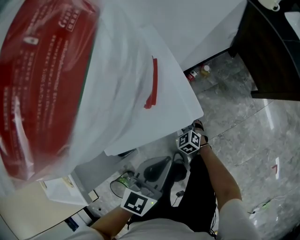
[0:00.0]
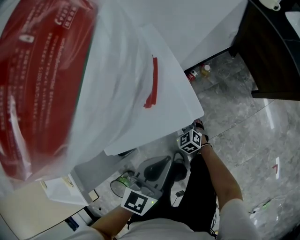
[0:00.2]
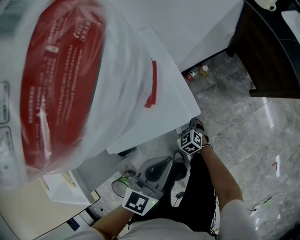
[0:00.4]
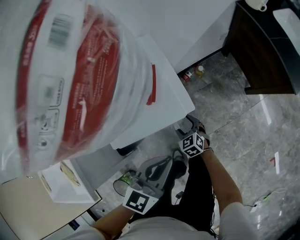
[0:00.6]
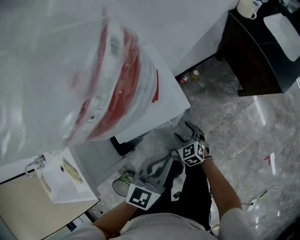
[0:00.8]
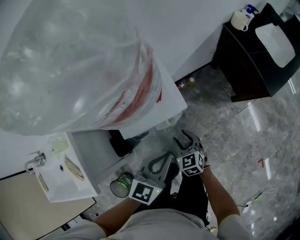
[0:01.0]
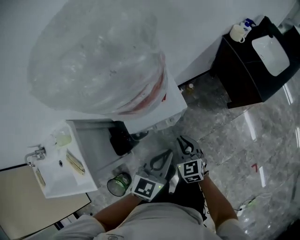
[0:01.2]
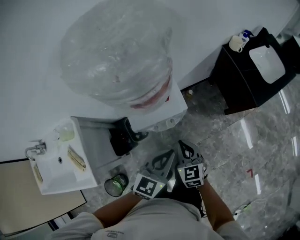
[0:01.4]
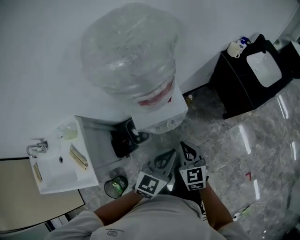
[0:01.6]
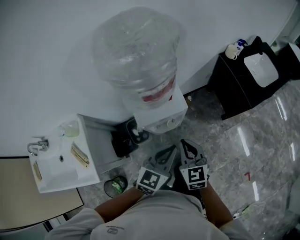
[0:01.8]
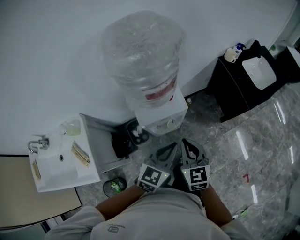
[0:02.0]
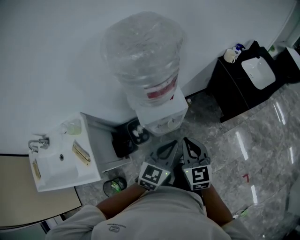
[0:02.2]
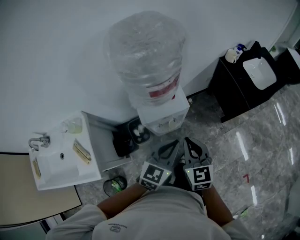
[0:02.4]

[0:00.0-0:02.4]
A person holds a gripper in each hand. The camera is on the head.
0:00.0 to 0:01.2: The left gripper travels upward by some 15 cm. The right gripper goes roughly 35 cm upward, rotates approximately 20 degrees, and closes.
0:01.2 to 0:02.4: The left gripper travels upward by about 10 cm; the right gripper is displaced upward by approximately 20 cm.

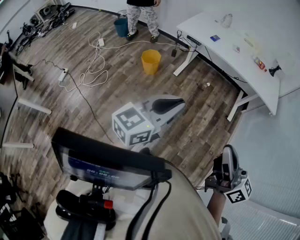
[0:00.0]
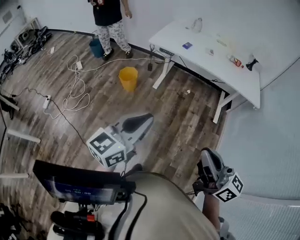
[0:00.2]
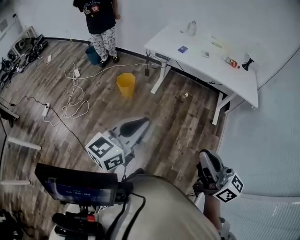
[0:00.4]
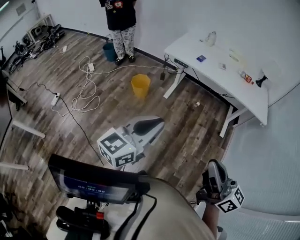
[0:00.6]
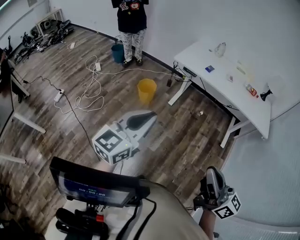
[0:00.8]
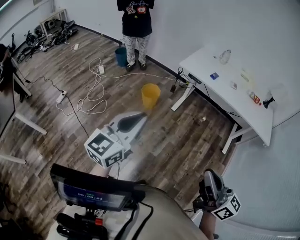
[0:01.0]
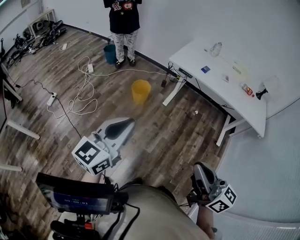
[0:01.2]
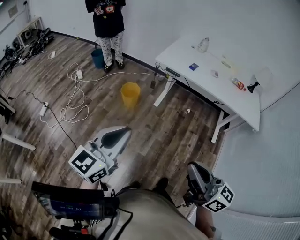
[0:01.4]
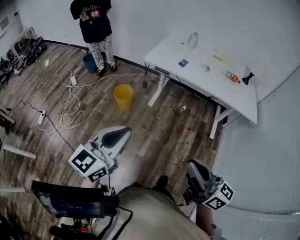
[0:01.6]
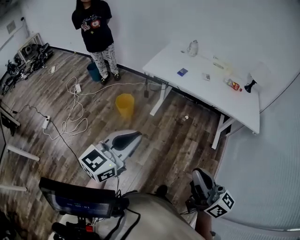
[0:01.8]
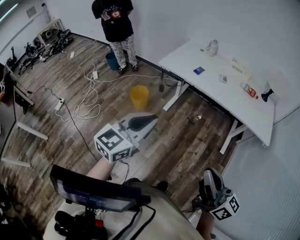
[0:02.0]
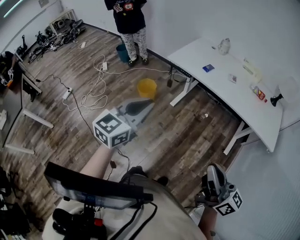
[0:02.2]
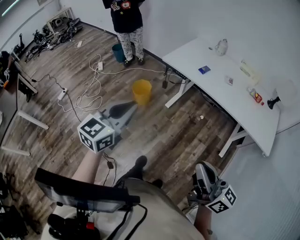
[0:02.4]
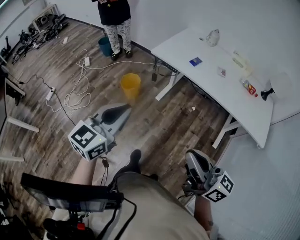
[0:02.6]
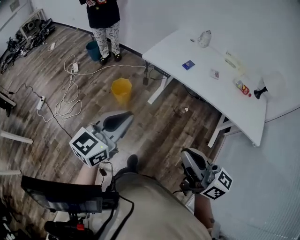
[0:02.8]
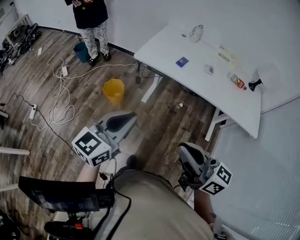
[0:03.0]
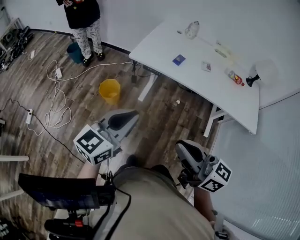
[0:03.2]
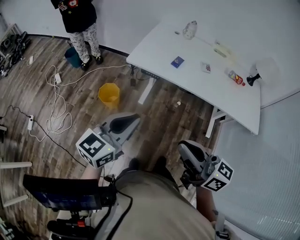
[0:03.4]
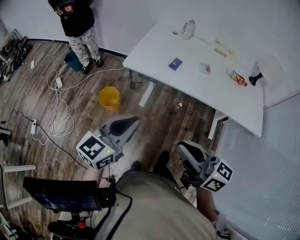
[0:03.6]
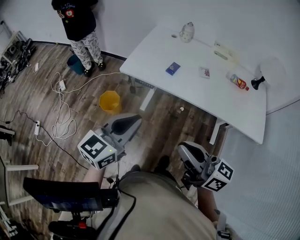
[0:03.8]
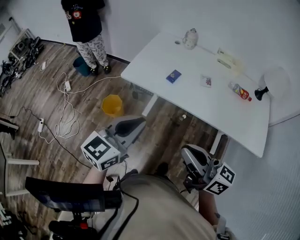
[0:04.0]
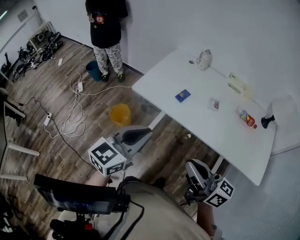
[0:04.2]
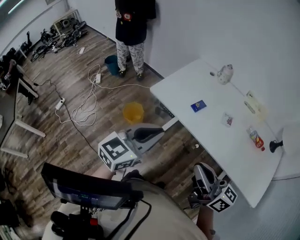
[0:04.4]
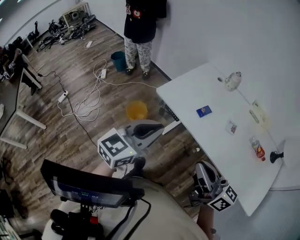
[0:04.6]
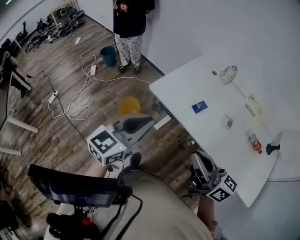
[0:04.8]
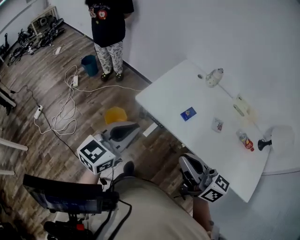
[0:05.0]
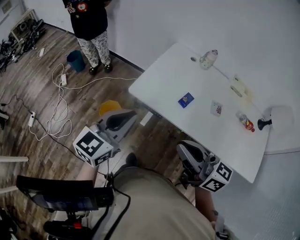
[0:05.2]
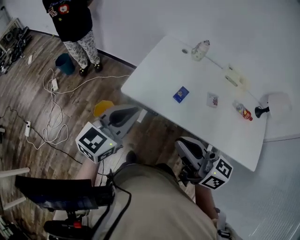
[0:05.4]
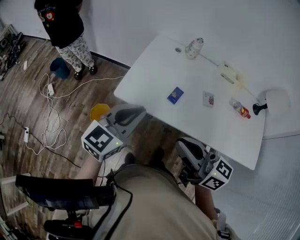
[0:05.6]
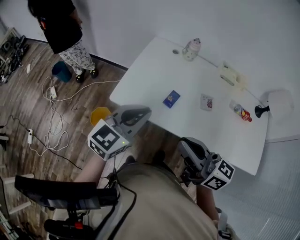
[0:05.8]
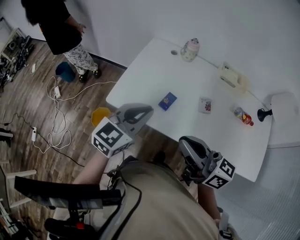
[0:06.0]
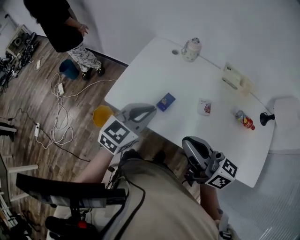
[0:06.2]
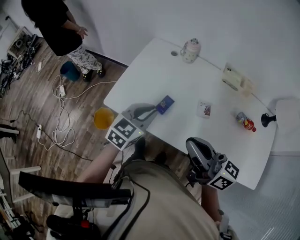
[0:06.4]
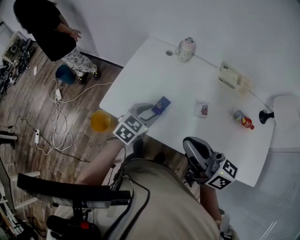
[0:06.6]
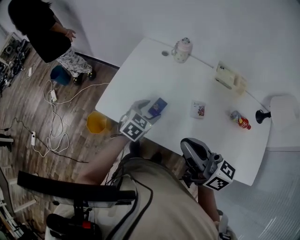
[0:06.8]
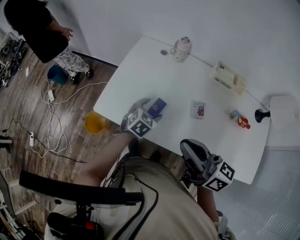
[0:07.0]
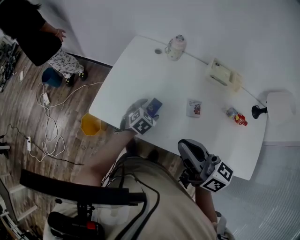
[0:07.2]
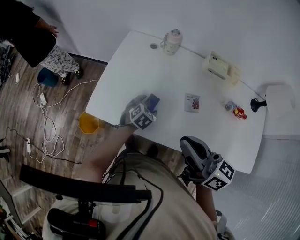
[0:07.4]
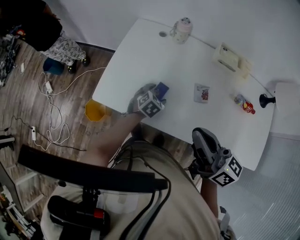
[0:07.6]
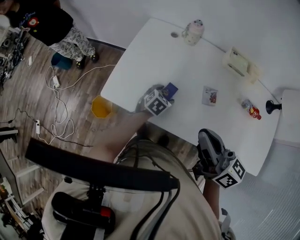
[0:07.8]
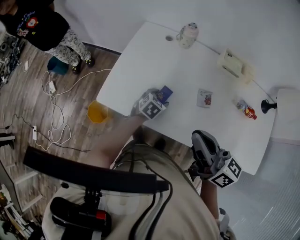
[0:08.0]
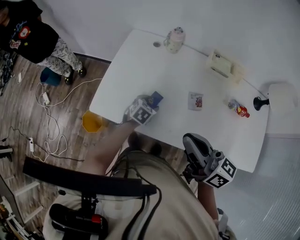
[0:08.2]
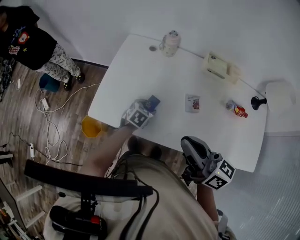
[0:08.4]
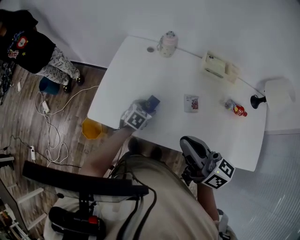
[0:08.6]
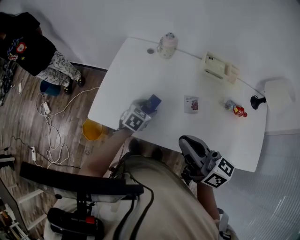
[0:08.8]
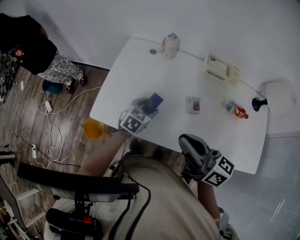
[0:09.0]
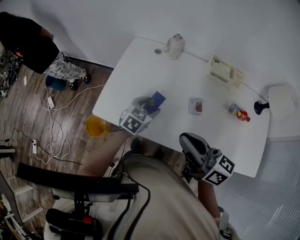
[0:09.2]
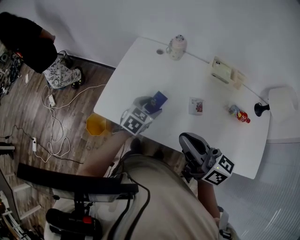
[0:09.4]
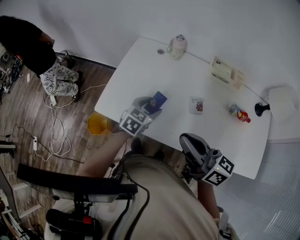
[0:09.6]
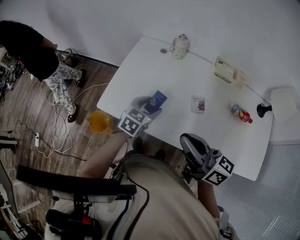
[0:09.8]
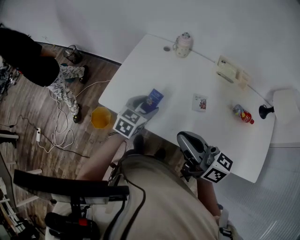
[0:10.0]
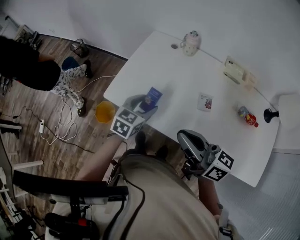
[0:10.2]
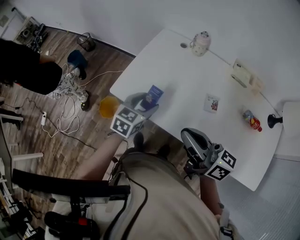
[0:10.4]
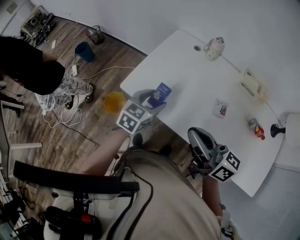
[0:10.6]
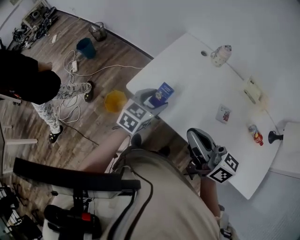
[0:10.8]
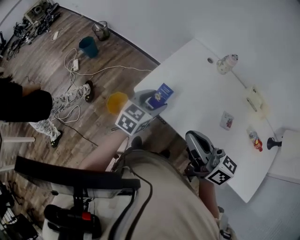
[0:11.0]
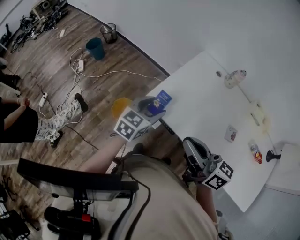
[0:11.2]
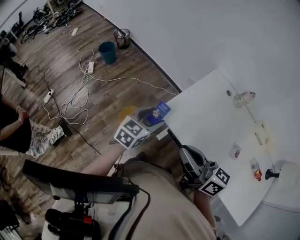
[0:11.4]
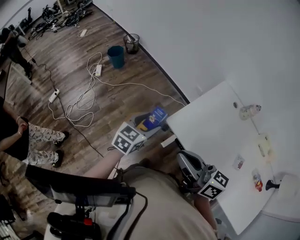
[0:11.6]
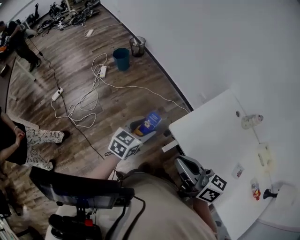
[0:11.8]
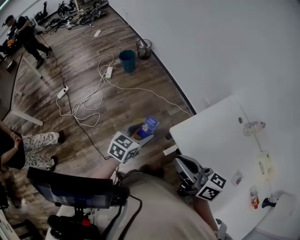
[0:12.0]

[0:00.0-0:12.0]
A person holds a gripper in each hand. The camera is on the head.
0:00.0 to 0:01.6: The right gripper moves forward and to the left, about 15 cm. The left gripper heads to the left and forward, covering some 15 cm.
0:01.6 to 0:03.0: The left gripper moves forward and to the right, approximately 25 cm; the right gripper travels forward by roughly 25 cm.
0:03.0 to 0:04.4: Both grippers travel together forward and to the right, about 25 cm.
0:04.4 to 0:06.0: The grippers both shift forward by roughly 25 cm.
0:06.0 to 0:07.6: The left gripper travels downward and forward by roughly 30 cm, tips its fingers downward by roughly 40 degrees, and opens its fingers. The right gripper travels to the right and forward by roughly 10 cm.
0:07.6 to 0:09.0: The left gripper travels upward by some 5 cm.
0:09.0 to 0:10.4: The left gripper travels to the left, upward and backward by some 15 cm. The right gripper ends up about 5 cm from where it was.
0:10.4 to 0:12.0: The right gripper moves some 35 cm, and swivels roughly 30 degrees. The left gripper shifts by some 40 cm, and swivels about 30 degrees.

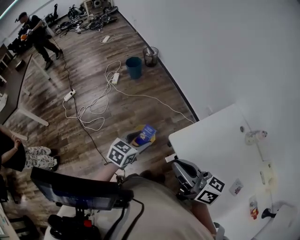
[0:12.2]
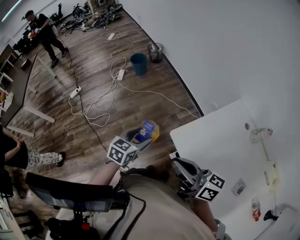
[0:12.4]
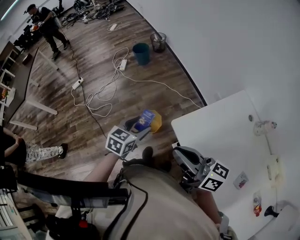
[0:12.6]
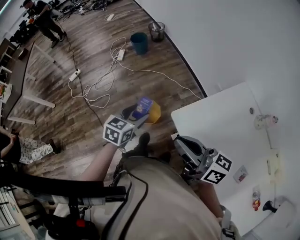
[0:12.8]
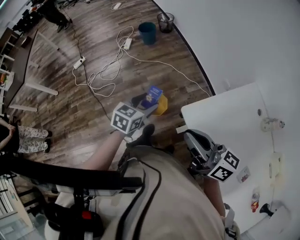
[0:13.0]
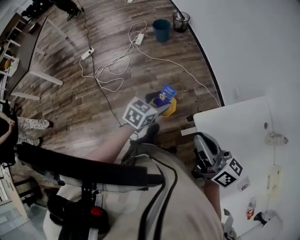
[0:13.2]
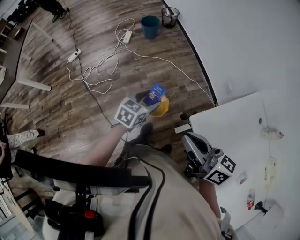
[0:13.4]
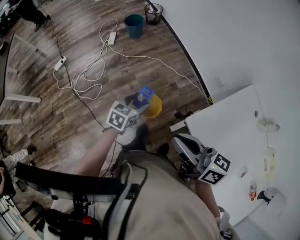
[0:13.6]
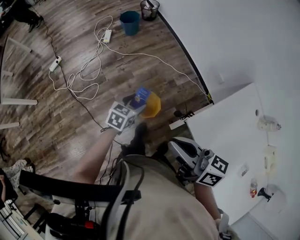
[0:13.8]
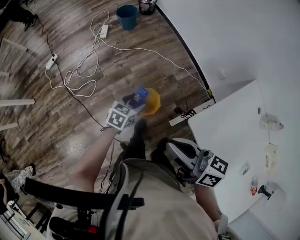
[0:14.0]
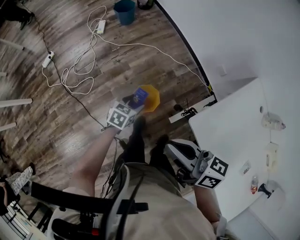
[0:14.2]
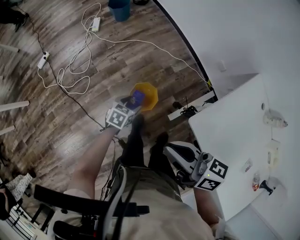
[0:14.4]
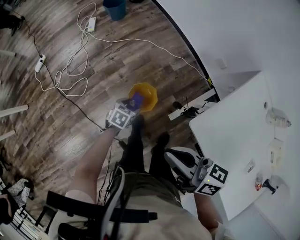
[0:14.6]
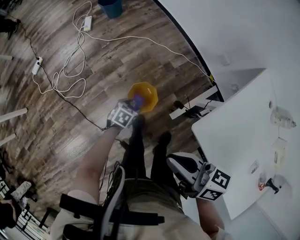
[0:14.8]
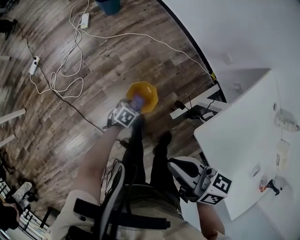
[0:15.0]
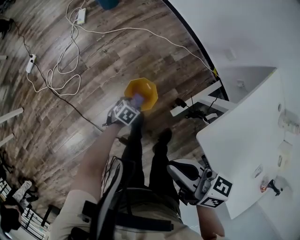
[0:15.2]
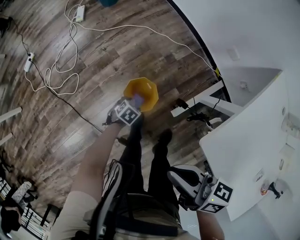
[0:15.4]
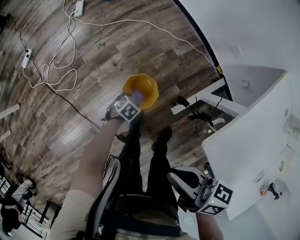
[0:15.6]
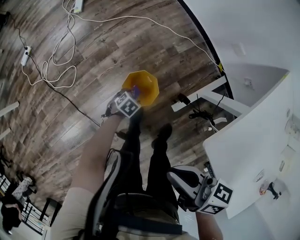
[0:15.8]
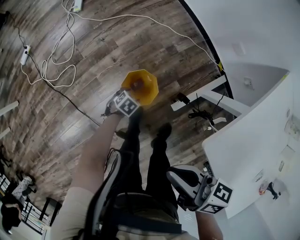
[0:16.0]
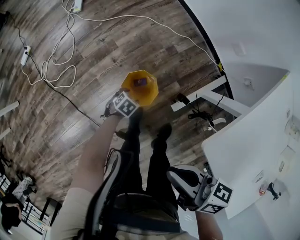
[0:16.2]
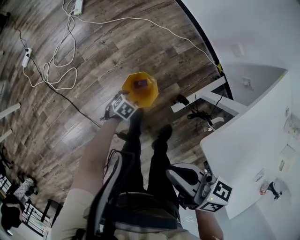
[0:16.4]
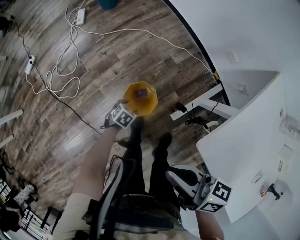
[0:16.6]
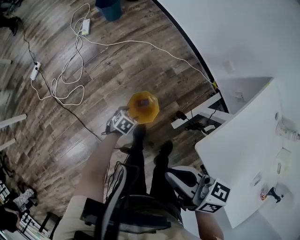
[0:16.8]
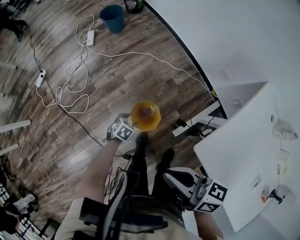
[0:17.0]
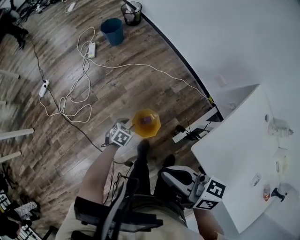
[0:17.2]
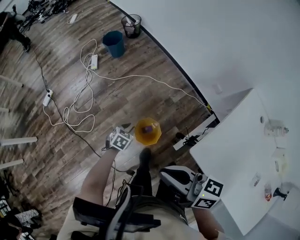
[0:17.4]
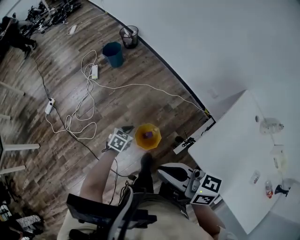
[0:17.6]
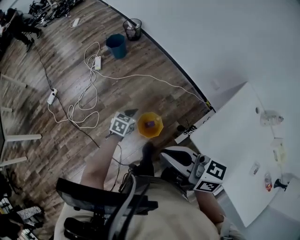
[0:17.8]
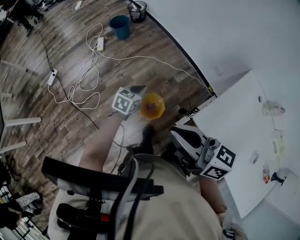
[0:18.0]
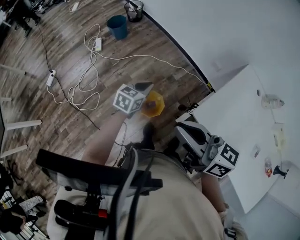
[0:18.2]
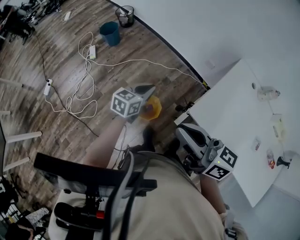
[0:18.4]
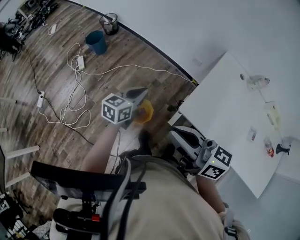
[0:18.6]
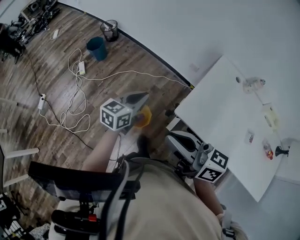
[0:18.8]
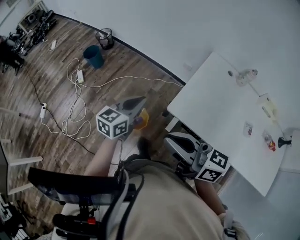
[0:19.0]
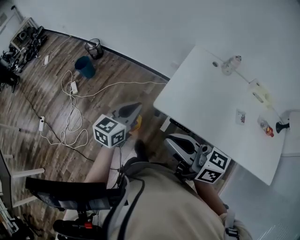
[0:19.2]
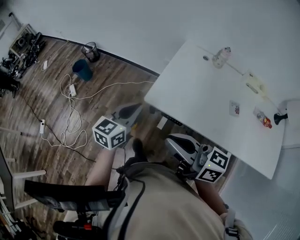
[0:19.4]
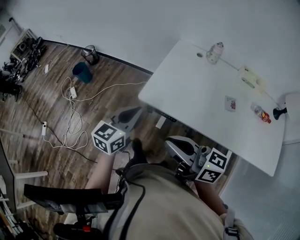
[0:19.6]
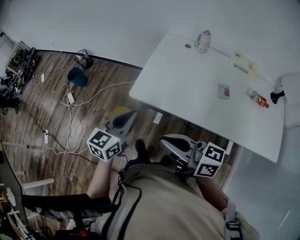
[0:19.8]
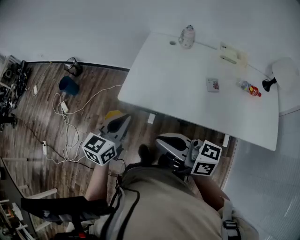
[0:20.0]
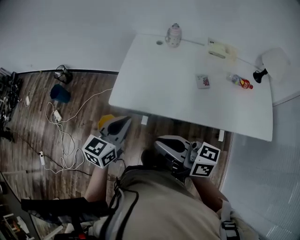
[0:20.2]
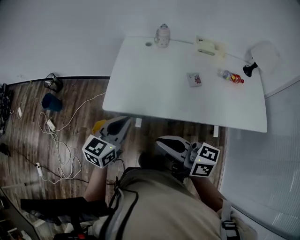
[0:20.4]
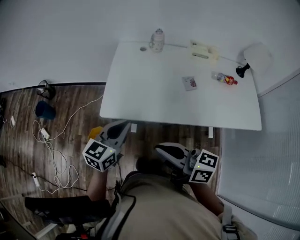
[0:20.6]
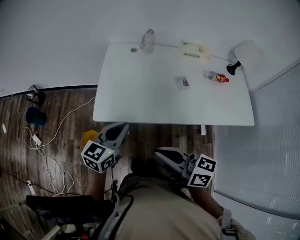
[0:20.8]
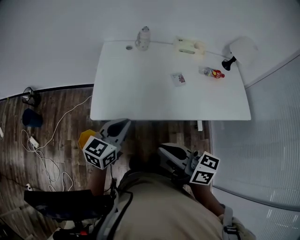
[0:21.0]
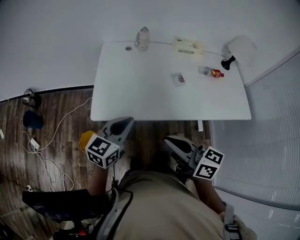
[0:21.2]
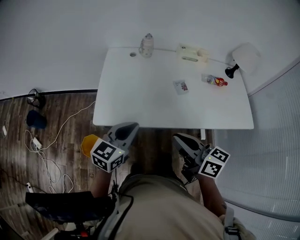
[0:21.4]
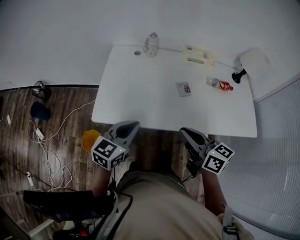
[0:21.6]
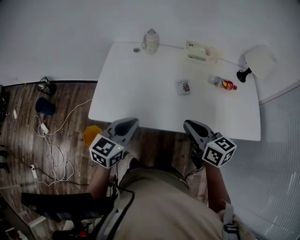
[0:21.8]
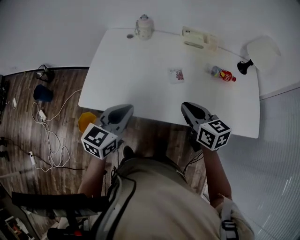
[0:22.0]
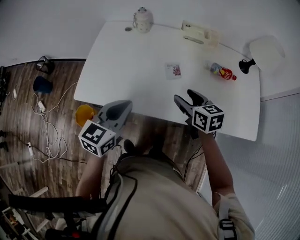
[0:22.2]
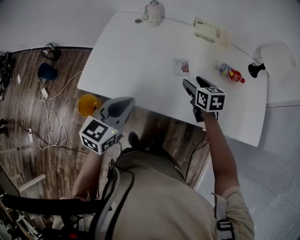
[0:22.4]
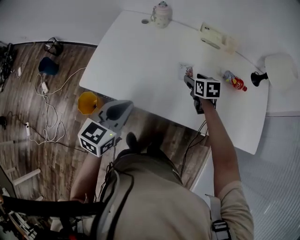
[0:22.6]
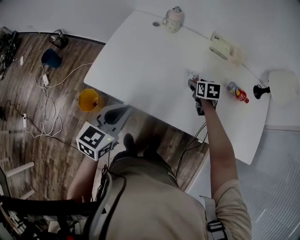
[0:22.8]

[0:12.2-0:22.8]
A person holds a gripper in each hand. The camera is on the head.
0:12.2 to 0:13.8: The right gripper shifts approximately 20 cm forward, to the left and downward, while the left gripper travels forward, downward and to the left by about 25 cm.
0:13.8 to 0:15.2: The right gripper heads downward, covering roughly 20 cm. Meanwhile the left gripper shifts some 35 cm downward, and swivels about 30 degrees.
0:15.2 to 0:16.8: The left gripper moves about 10 cm downward and comes back.
0:16.8 to 0:18.2: The right gripper travels upward by about 20 cm, and turns by some 20 degrees. Meanwhile the left gripper heads upward, covering about 40 cm, tips its fingers upward by about 40 degrees, and closes.
0:18.2 to 0:19.8: The left gripper heads to the right, backward and upward, covering some 50 cm, and changes its angle by approximately 30 degrees, while the right gripper moves to the right and backward, some 40 cm, and turns by some 20 degrees.
0:19.8 to 0:21.2: The right gripper ends up some 10 cm from where it was, and changes its angle by approximately 40 degrees. Meanwhile the left gripper moves some 10 cm, and changes its angle by approximately 30 degrees.
0:21.2 to 0:22.8: The left gripper heads to the right, covering about 10 cm, and rotates approximately 20 degrees, while the right gripper moves forward, to the right and downward, roughly 50 cm, tips its fingers downward by some 50 degrees, and opens.
